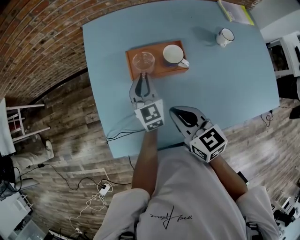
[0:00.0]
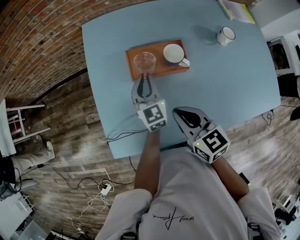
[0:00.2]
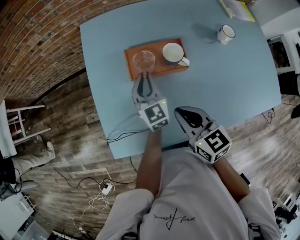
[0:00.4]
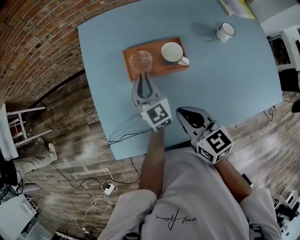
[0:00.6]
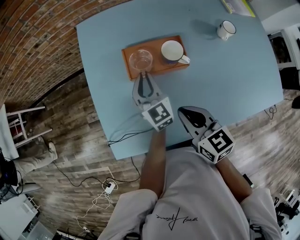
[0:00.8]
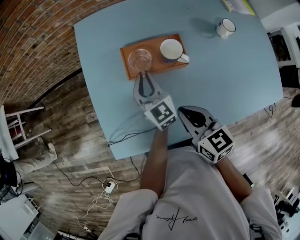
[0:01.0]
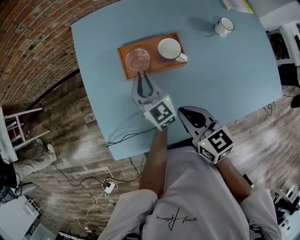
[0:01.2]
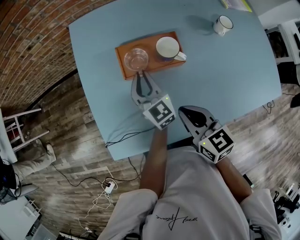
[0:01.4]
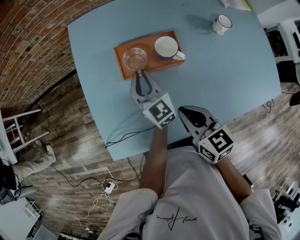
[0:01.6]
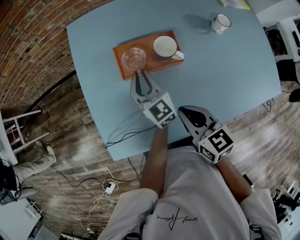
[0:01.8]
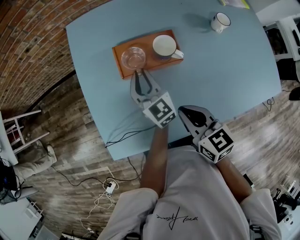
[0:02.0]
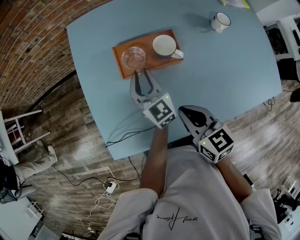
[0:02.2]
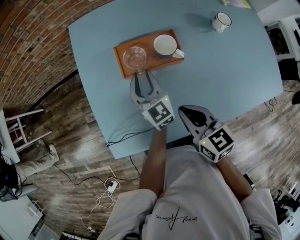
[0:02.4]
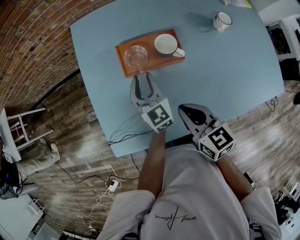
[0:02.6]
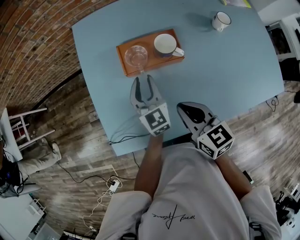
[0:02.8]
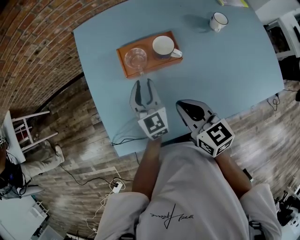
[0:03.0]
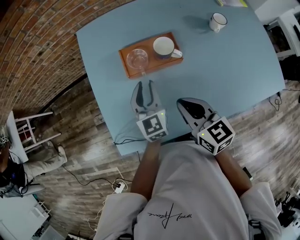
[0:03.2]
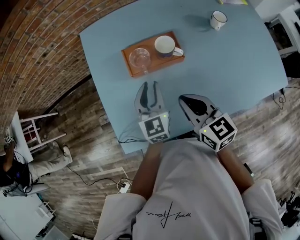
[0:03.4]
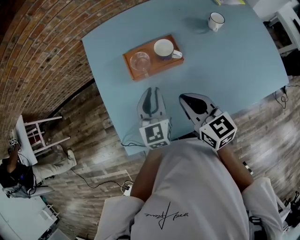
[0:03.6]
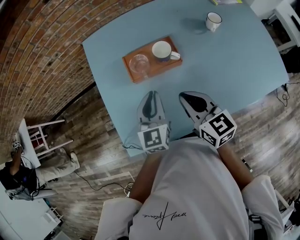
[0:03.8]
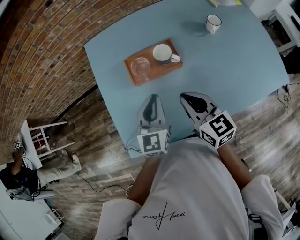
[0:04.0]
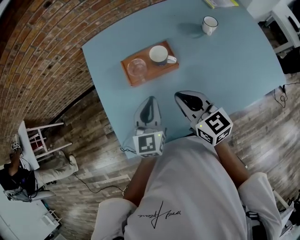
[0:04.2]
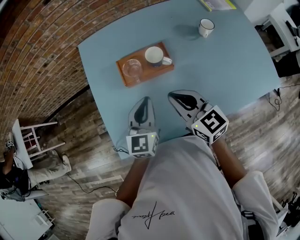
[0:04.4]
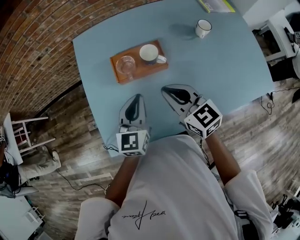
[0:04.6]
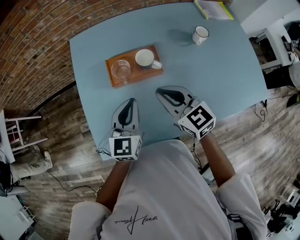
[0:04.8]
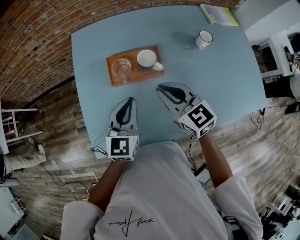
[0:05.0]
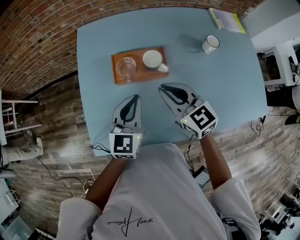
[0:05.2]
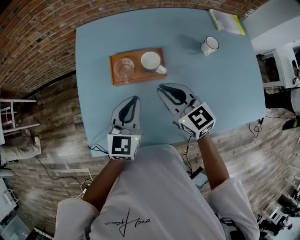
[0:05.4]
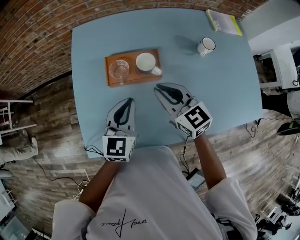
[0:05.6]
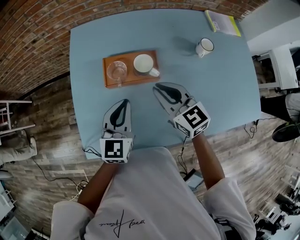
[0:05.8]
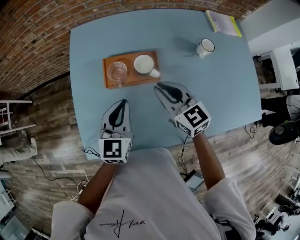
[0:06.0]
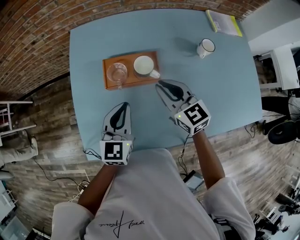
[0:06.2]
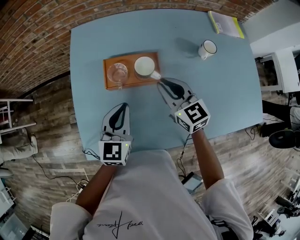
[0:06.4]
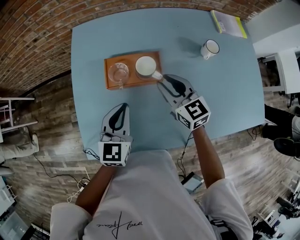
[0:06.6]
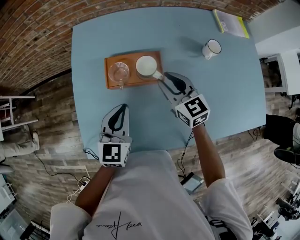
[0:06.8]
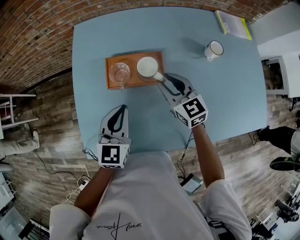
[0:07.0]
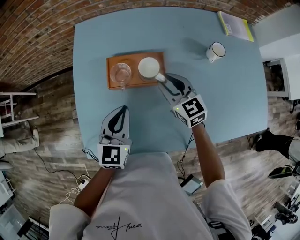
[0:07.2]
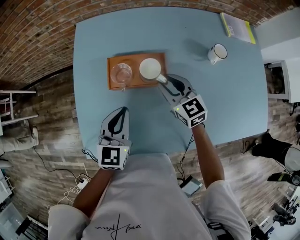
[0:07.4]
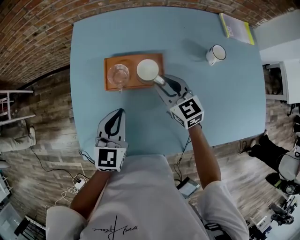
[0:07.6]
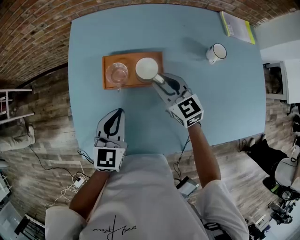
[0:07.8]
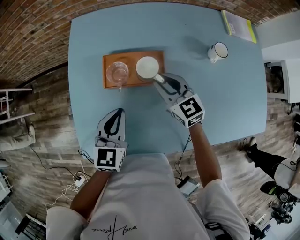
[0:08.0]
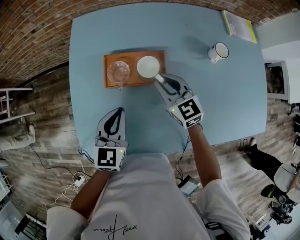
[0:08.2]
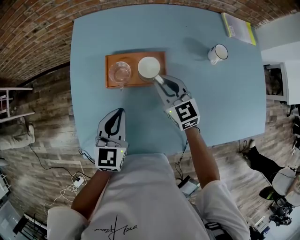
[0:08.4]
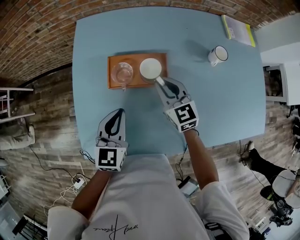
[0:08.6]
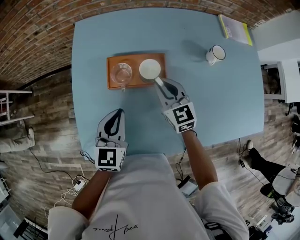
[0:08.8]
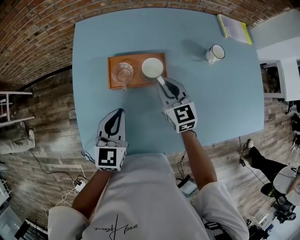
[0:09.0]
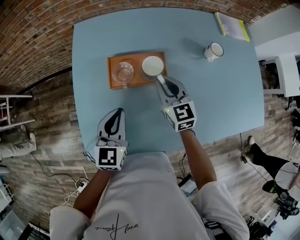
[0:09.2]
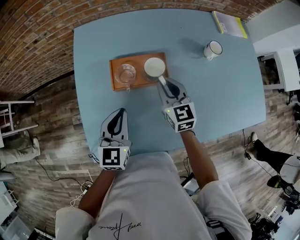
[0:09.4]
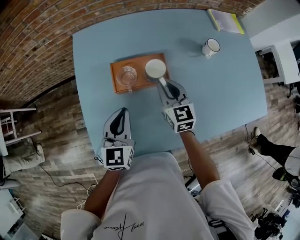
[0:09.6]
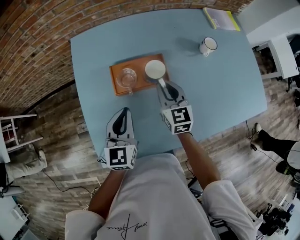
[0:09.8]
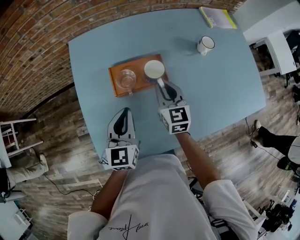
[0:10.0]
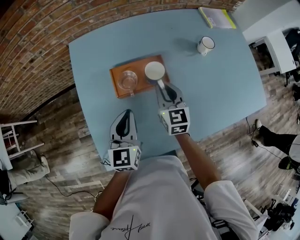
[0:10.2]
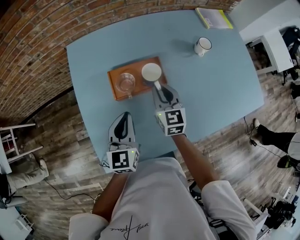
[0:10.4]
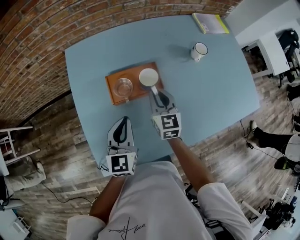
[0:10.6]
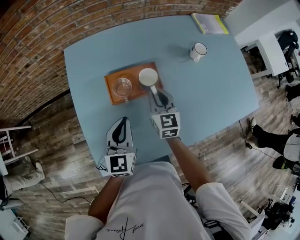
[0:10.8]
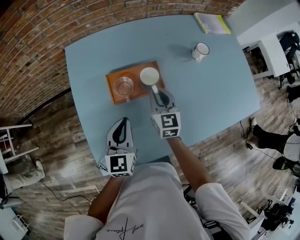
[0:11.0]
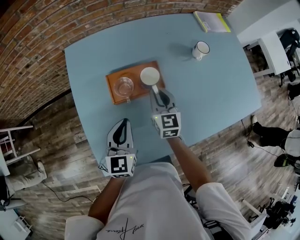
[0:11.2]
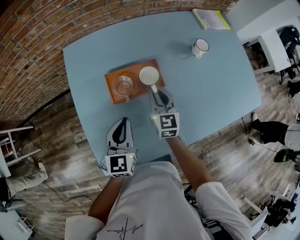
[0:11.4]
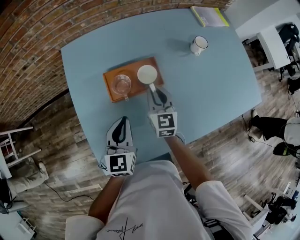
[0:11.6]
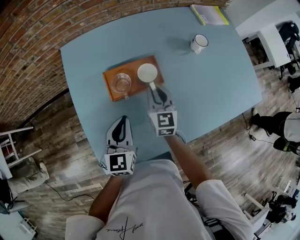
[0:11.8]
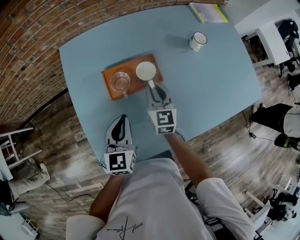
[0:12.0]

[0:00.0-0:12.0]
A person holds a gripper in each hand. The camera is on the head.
0:00.0 to 0:03.0: The grippers move only a little.
0:03.0 to 0:04.4: The left gripper goes about 10 cm upward and backward, rotates approximately 20 degrees, and closes its fingers; the right gripper changes place by approximately 5 cm.
0:04.4 to 0:06.0: The right gripper moves forward, approximately 5 cm.
0:06.0 to 0:07.6: The right gripper goes approximately 10 cm downward and forward.
0:07.6 to 0:09.0: The grippers make only small movements.
0:09.0 to 0:10.4: The right gripper swivels roughly 20 degrees.
0:10.4 to 0:12.0: The grippers make only small movements.

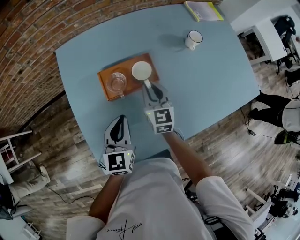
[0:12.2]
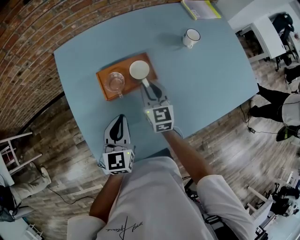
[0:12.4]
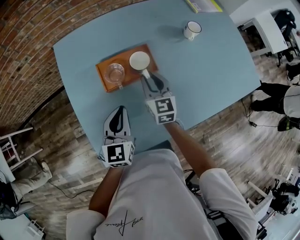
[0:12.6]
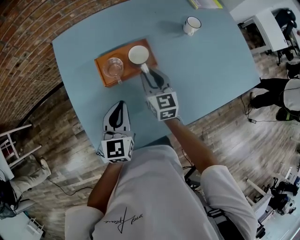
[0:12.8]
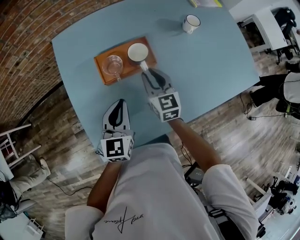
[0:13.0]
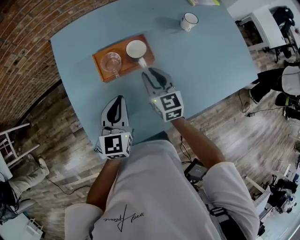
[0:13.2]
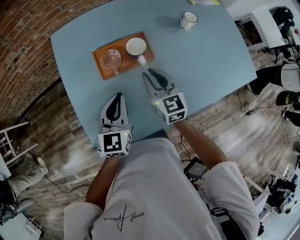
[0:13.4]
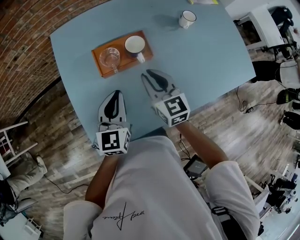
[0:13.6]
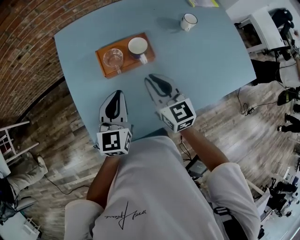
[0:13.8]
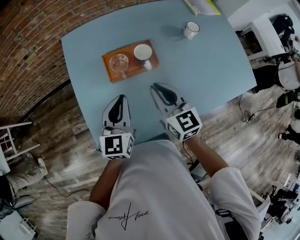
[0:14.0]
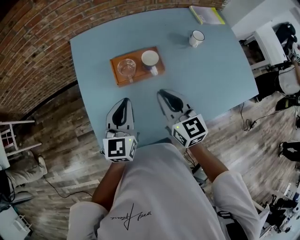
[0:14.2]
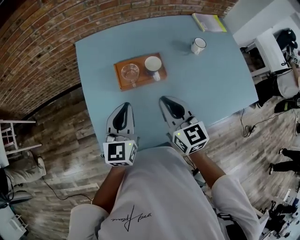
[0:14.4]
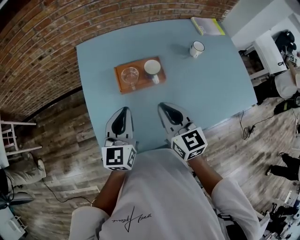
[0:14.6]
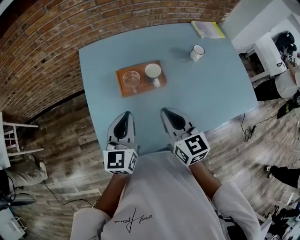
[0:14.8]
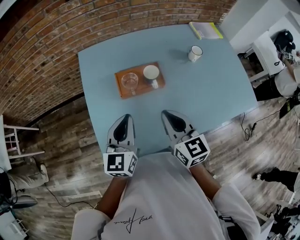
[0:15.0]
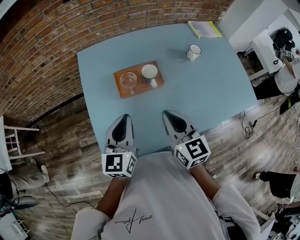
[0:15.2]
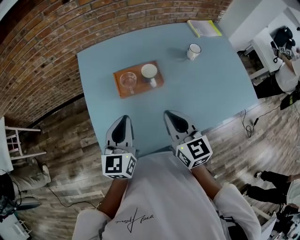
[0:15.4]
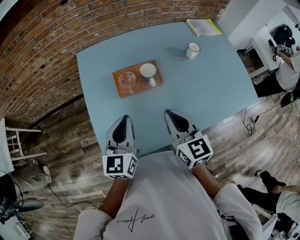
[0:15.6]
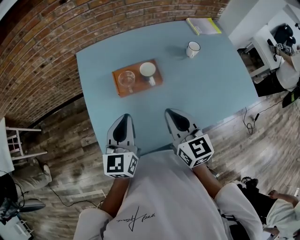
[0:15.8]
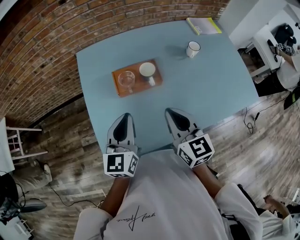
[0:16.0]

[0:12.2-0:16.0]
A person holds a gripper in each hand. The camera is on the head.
0:12.2 to 0:13.4: The right gripper is displaced backward by roughly 5 cm.
0:13.4 to 0:14.8: The left gripper goes some 5 cm upward. The right gripper heads upward and backward, covering roughly 15 cm.
0:14.8 to 0:16.0: The grippers move only a little.

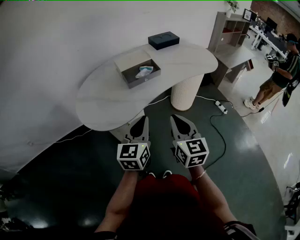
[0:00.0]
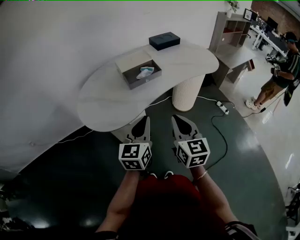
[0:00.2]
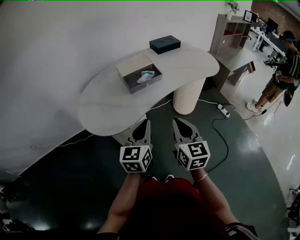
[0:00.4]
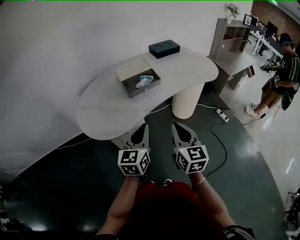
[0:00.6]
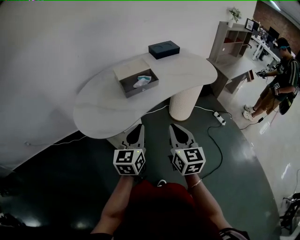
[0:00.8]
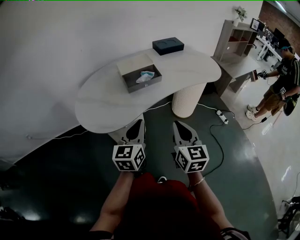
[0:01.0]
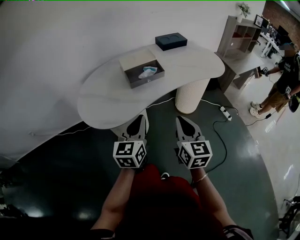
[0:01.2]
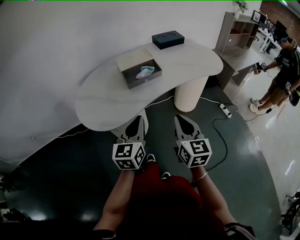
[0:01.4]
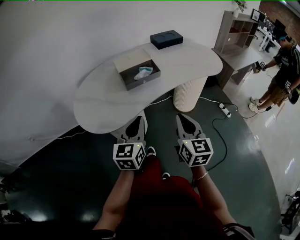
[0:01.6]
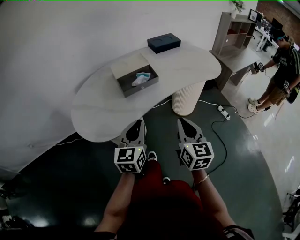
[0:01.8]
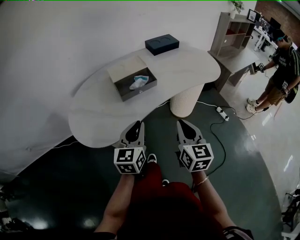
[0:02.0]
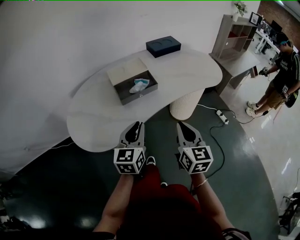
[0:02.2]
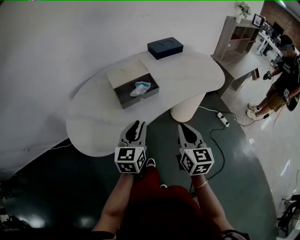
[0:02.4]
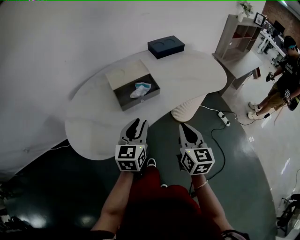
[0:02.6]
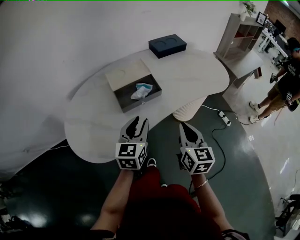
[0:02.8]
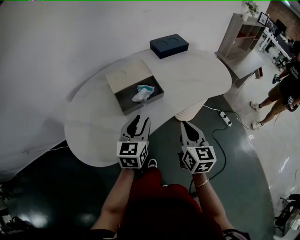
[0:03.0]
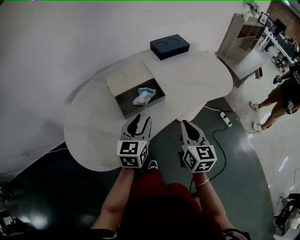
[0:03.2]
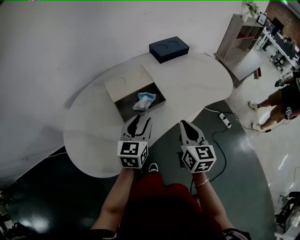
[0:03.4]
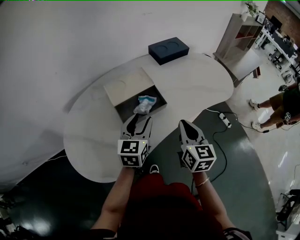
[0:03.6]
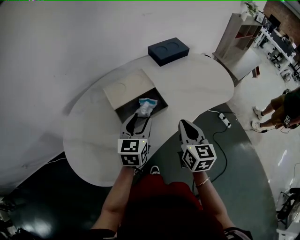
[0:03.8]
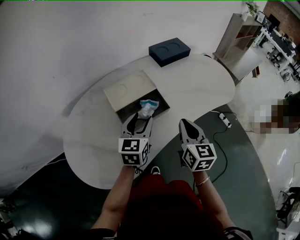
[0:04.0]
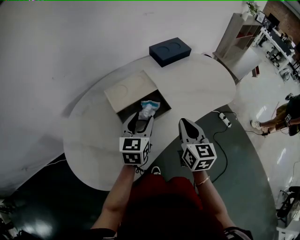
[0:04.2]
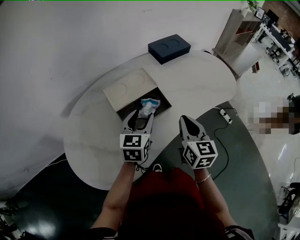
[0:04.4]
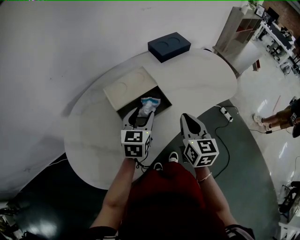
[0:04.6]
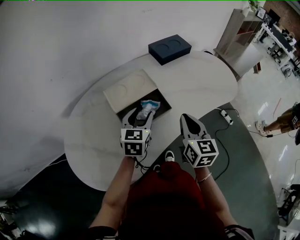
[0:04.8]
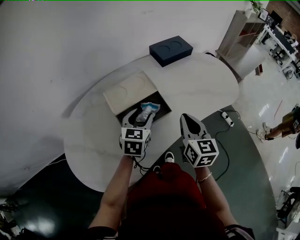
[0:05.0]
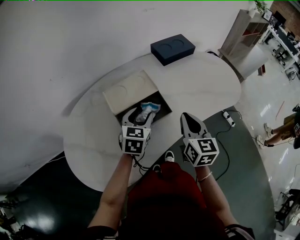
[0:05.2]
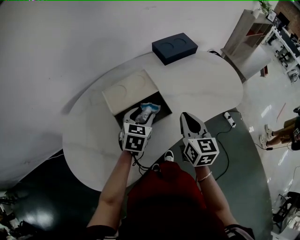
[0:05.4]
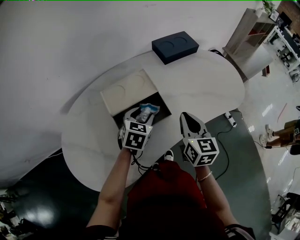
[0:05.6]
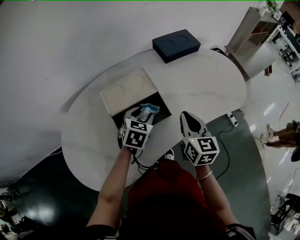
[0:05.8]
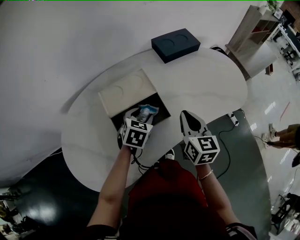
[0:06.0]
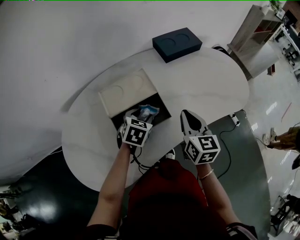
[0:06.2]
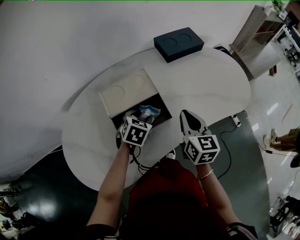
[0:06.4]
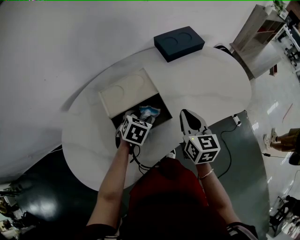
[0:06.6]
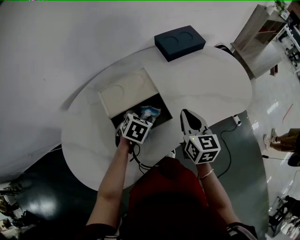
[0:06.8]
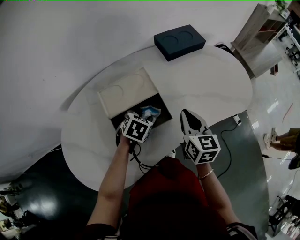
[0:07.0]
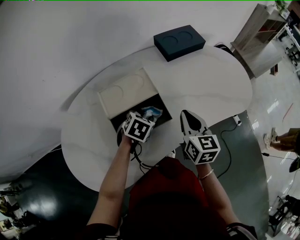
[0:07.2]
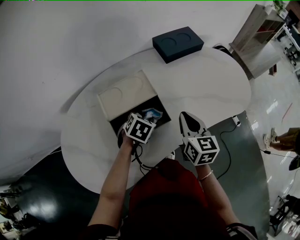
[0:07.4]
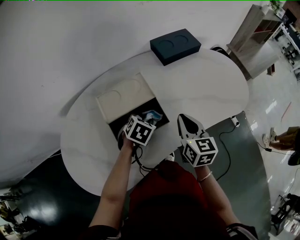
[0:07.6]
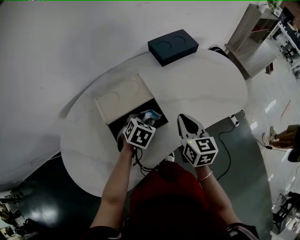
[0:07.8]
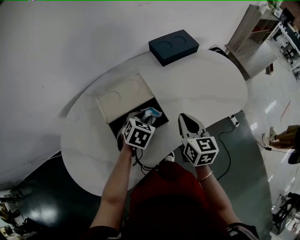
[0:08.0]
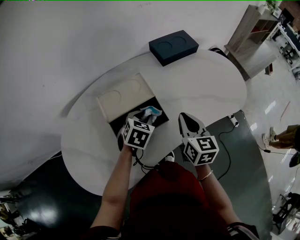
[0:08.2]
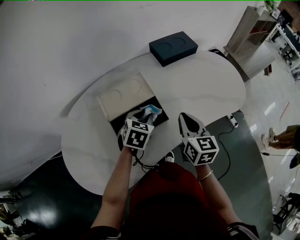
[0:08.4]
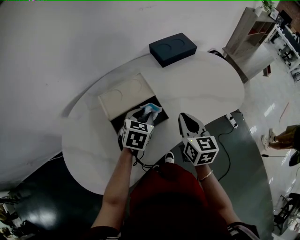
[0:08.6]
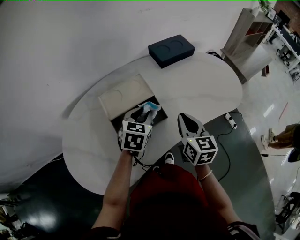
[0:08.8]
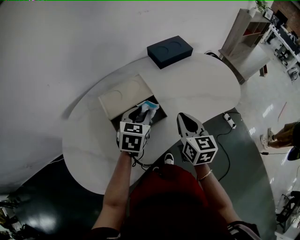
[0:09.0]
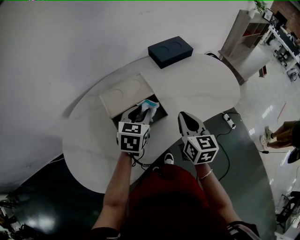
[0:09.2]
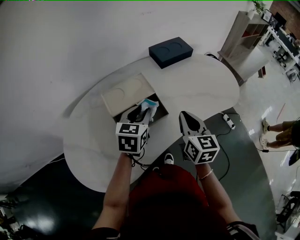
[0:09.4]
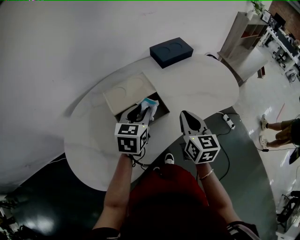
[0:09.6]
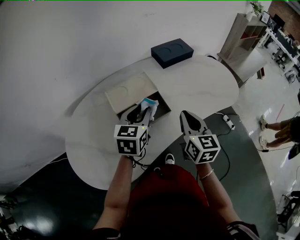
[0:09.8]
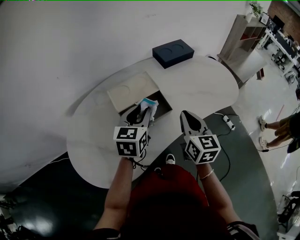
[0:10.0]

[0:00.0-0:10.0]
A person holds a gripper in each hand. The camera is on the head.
0:00.0 to 0:01.4: The right gripper ends up some 5 cm from where it was.
0:01.4 to 0:02.8: The two grippers go some 20 cm forward. The left gripper opens its fingers.
0:02.8 to 0:04.2: The left gripper heads forward, covering roughly 15 cm; the right gripper travels forward and to the left by some 15 cm.
0:04.2 to 0:05.8: The left gripper moves downward and forward, some 10 cm, and rotates about 30 degrees, while the right gripper shifts roughly 10 cm forward.
0:05.8 to 0:07.2: The left gripper goes roughly 5 cm downward.
0:07.2 to 0:08.6: The left gripper goes roughly 10 cm upward.
0:08.6 to 0:10.0: The left gripper goes approximately 10 cm upward and backward, and rotates about 20 degrees; the right gripper is displaced backward and upward by some 10 cm.
